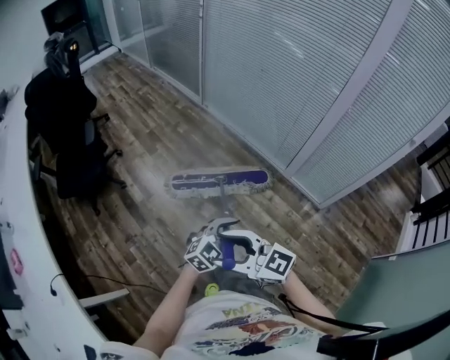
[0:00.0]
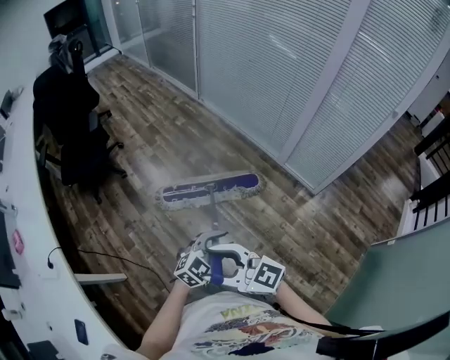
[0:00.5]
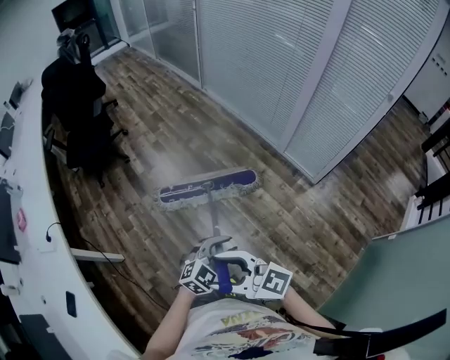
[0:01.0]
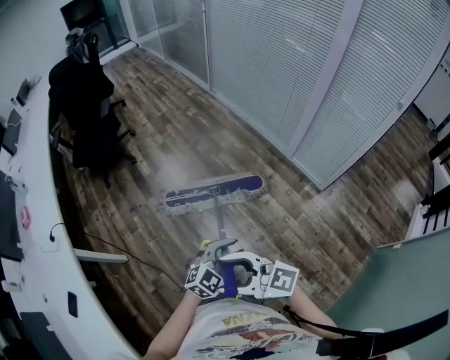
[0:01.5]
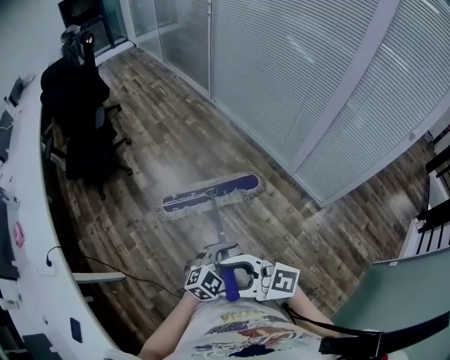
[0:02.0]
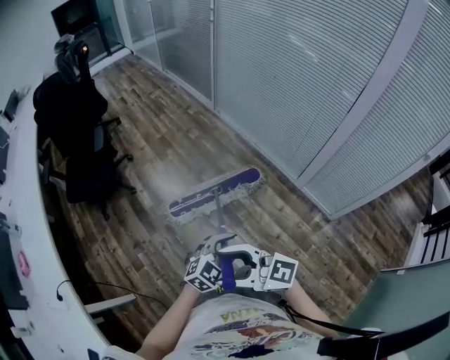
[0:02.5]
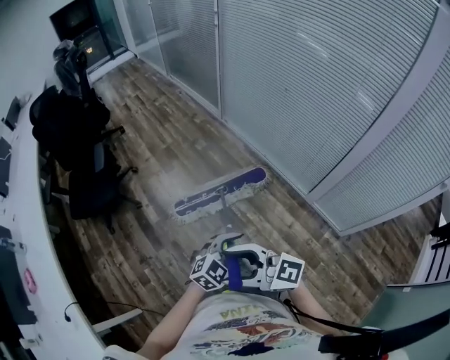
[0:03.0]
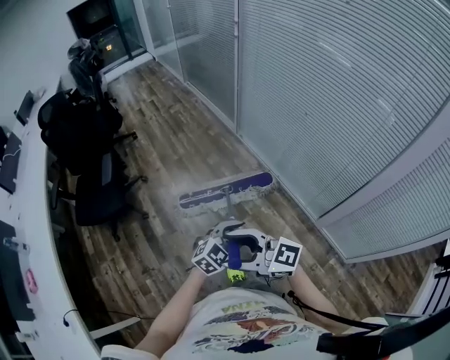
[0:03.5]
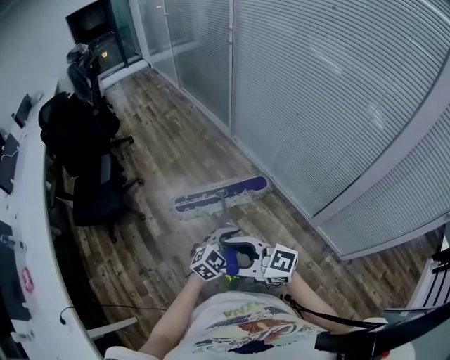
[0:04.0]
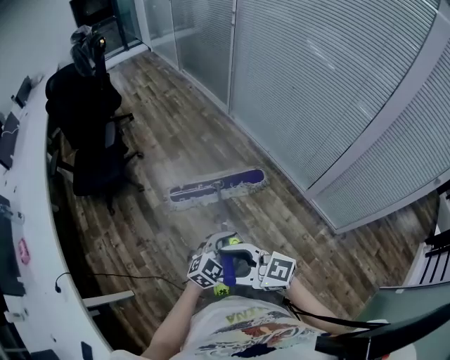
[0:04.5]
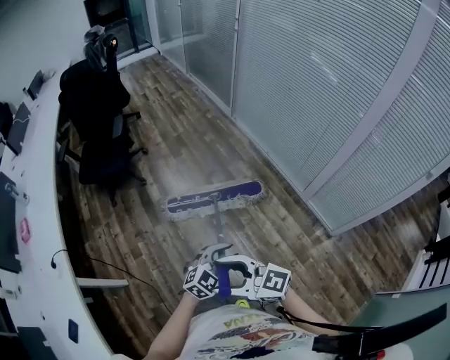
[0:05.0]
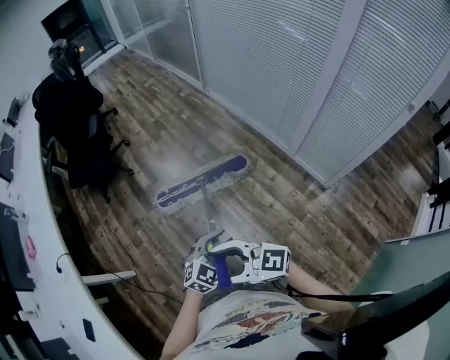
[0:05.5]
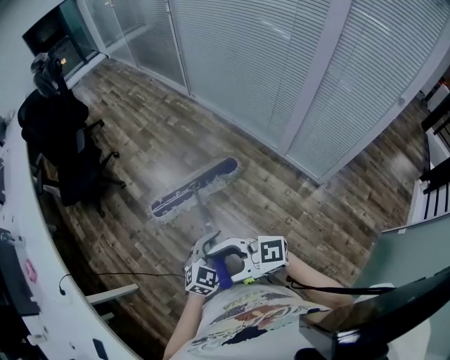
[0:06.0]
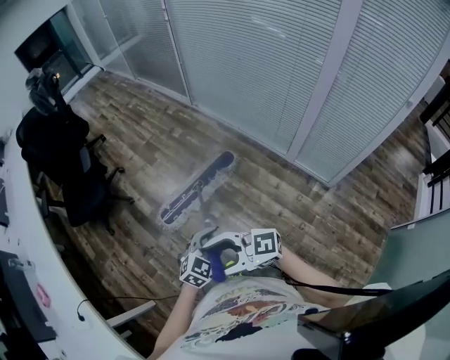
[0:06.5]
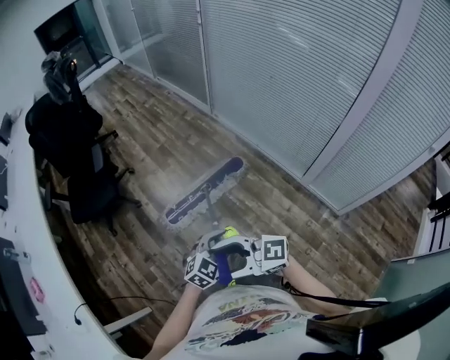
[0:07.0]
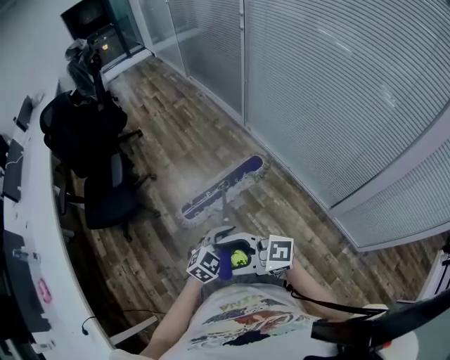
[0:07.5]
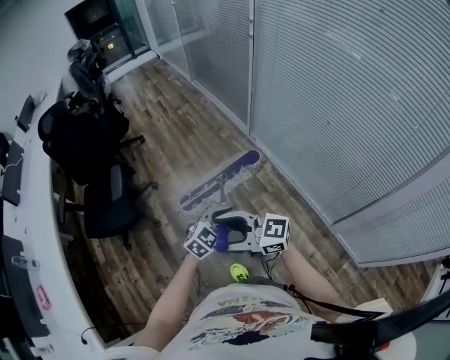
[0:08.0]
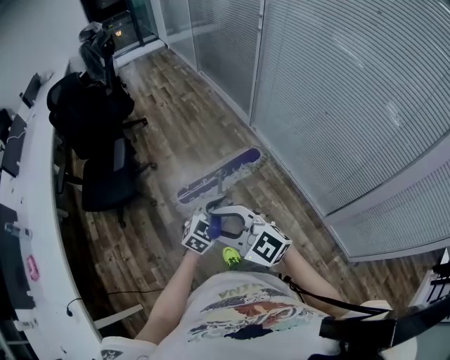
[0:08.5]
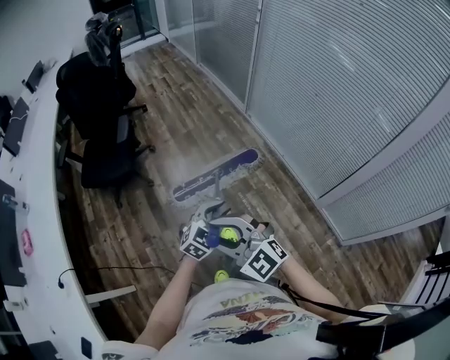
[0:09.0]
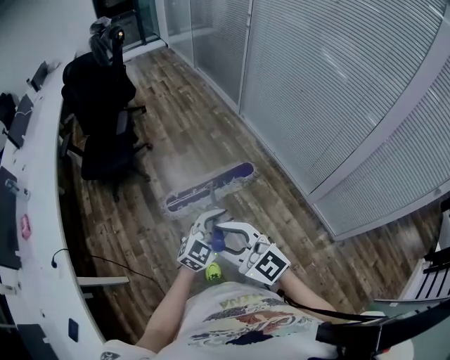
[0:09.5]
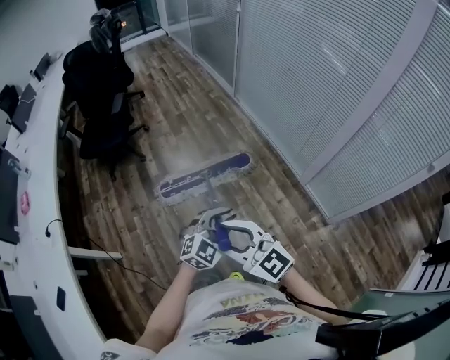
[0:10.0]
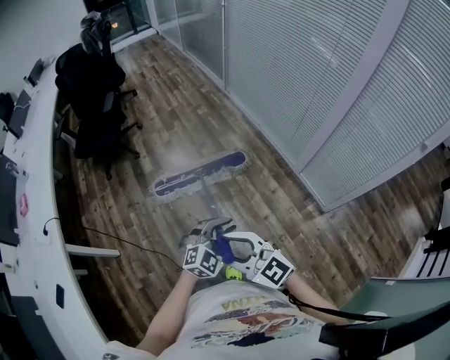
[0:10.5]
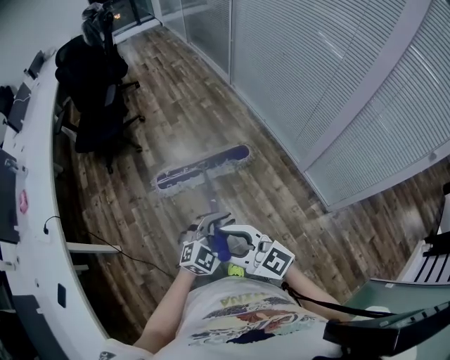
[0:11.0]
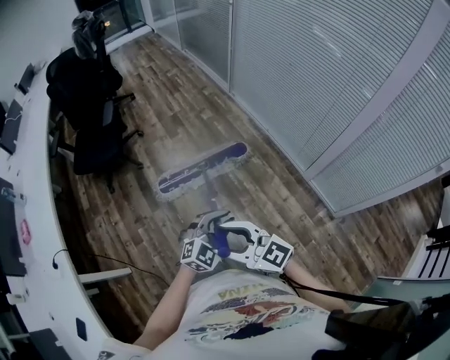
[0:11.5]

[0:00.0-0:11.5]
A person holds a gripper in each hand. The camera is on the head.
0:02.0 to 0:04.0: Both grippers are carried some 50 cm.
0:04.0 to 0:06.0: The two grippers travel together, roughly 40 cm.
0:06.0 to 0:07.5: The two grippers travel together, some 50 cm.
0:07.5 to 0:09.5: The left gripper shifts by approximately 30 cm; the right gripper moves about 30 cm, changes its angle by roughly 40 degrees, and closes up.
0:09.5 to 0:11.5: The two grippers go roughly 5 cm downward. The right gripper travels backward and back again, approximately 25 cm each way. The left gripper travels backward and back again, about 25 cm each way.

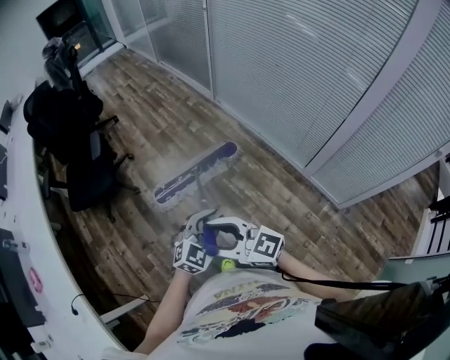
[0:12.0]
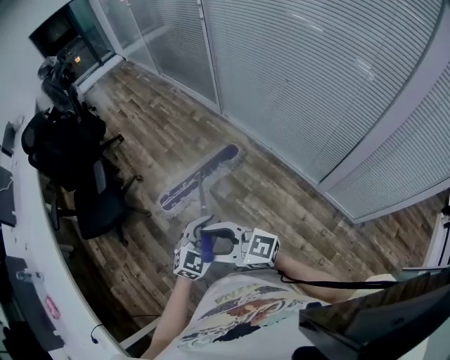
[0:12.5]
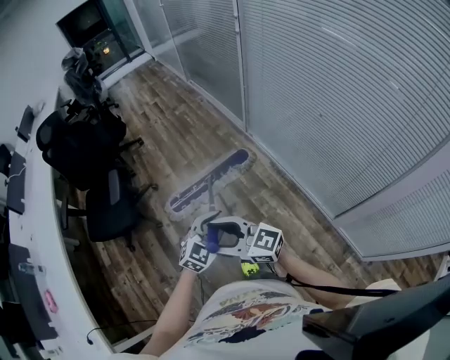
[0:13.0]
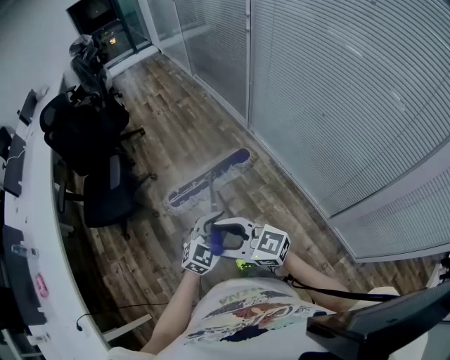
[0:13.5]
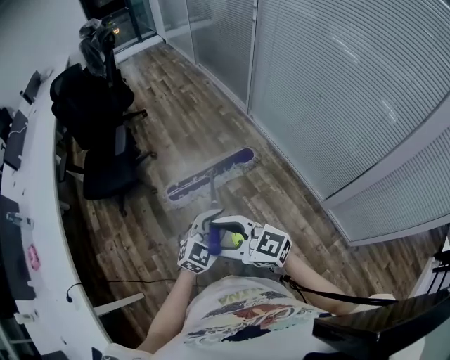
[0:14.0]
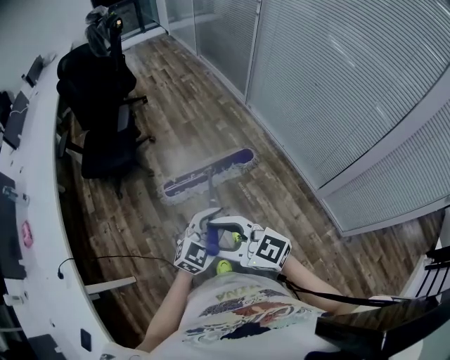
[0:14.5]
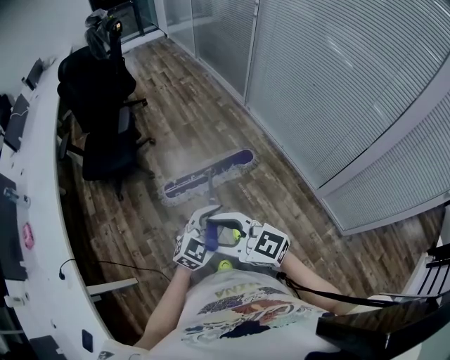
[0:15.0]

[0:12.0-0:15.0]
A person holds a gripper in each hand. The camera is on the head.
0:12.0 to 0:13.5: Both grippers travel together forward, some 30 cm.
0:13.5 to 0:15.0: Both grippers travel together backward and to the left, about 35 cm.

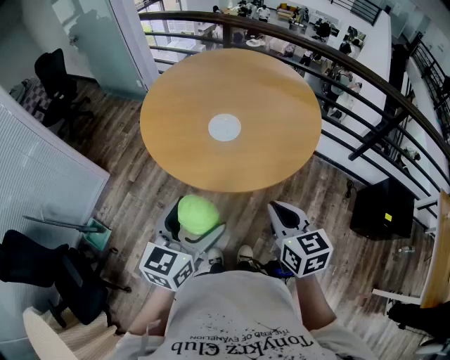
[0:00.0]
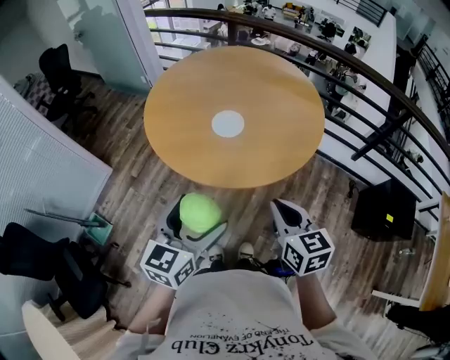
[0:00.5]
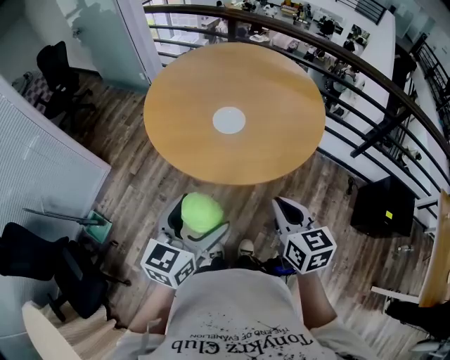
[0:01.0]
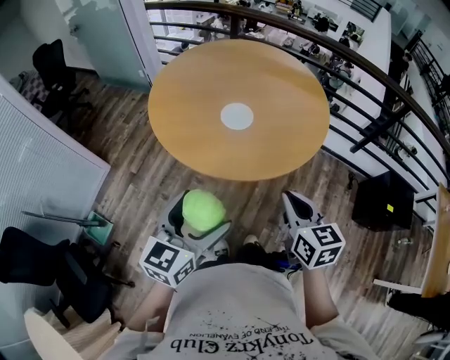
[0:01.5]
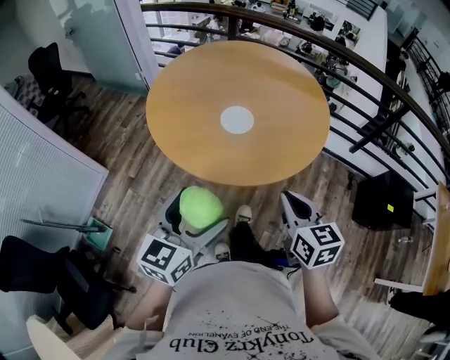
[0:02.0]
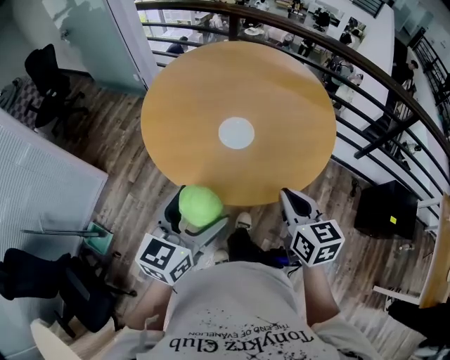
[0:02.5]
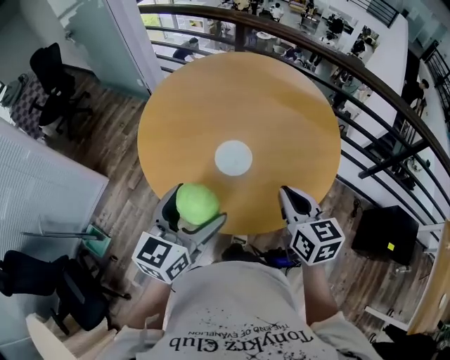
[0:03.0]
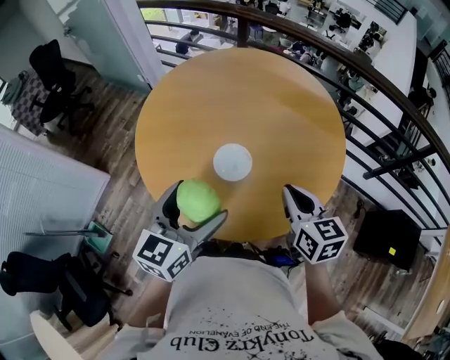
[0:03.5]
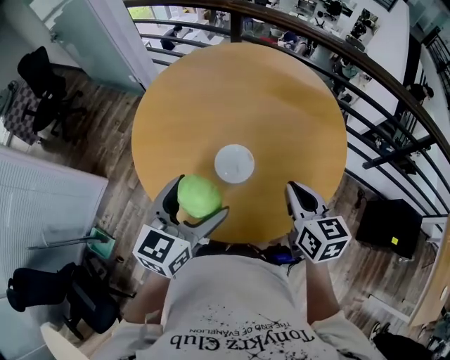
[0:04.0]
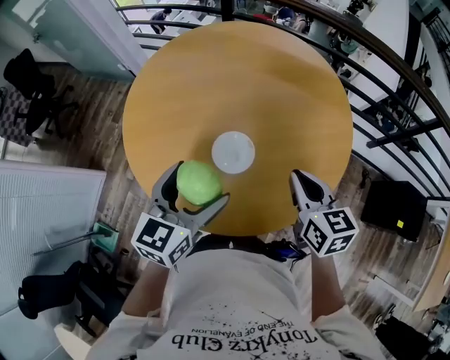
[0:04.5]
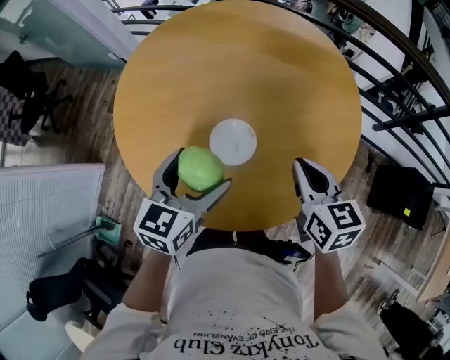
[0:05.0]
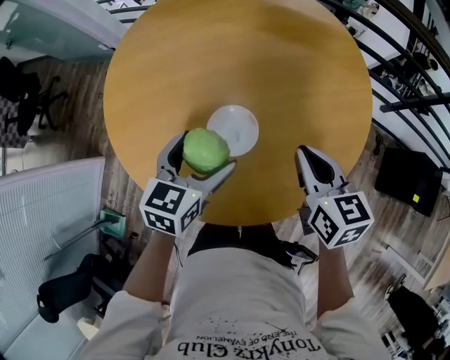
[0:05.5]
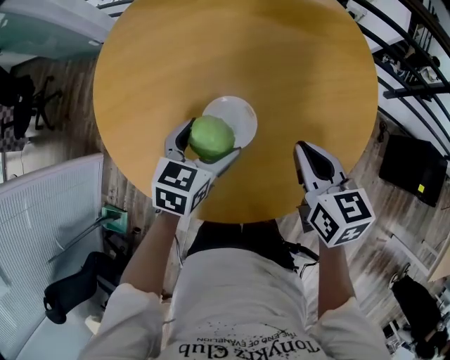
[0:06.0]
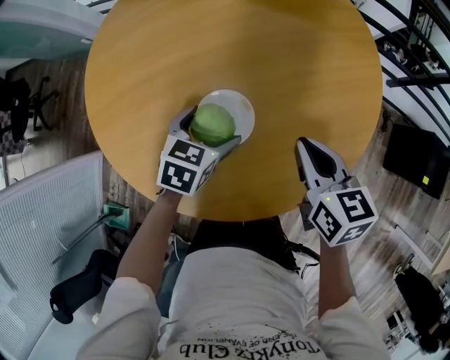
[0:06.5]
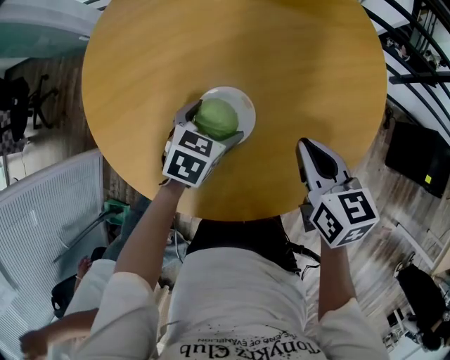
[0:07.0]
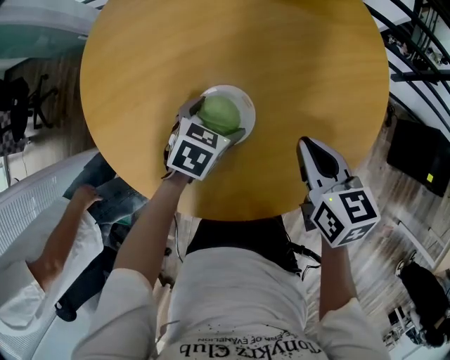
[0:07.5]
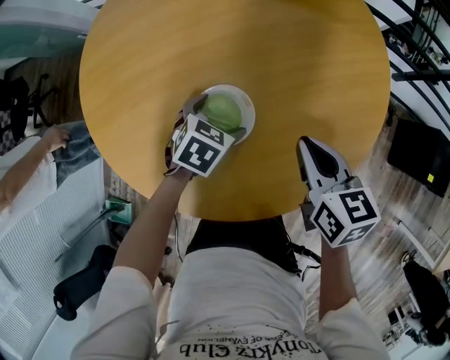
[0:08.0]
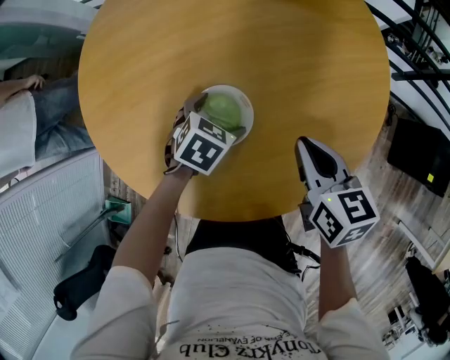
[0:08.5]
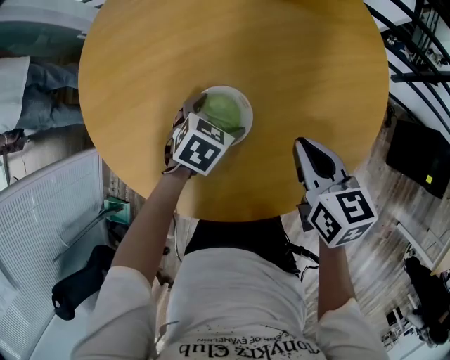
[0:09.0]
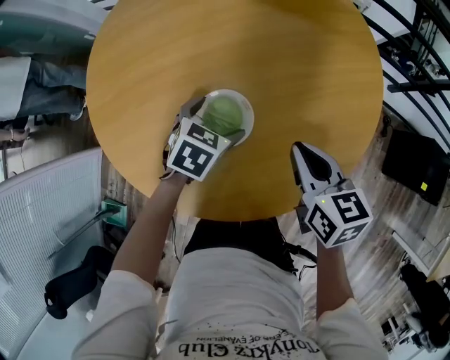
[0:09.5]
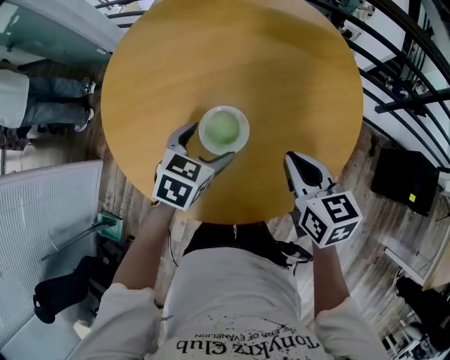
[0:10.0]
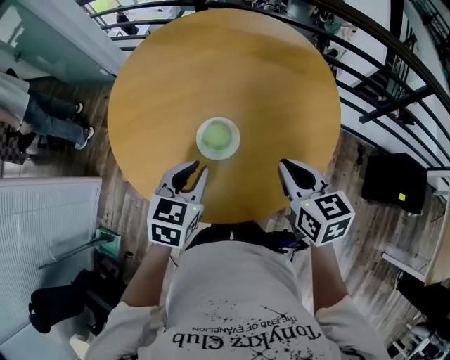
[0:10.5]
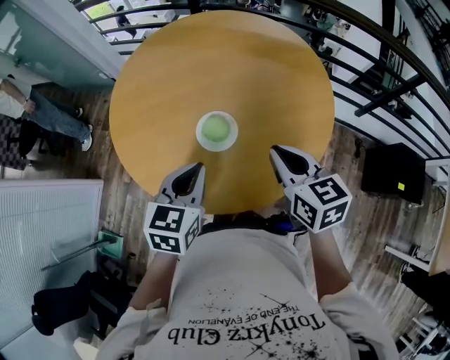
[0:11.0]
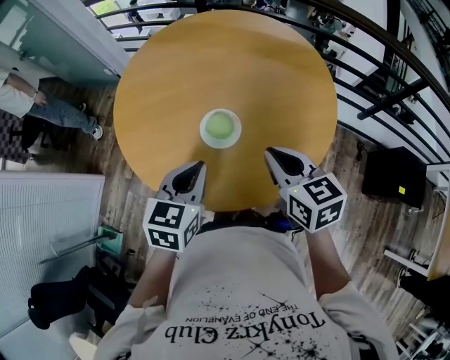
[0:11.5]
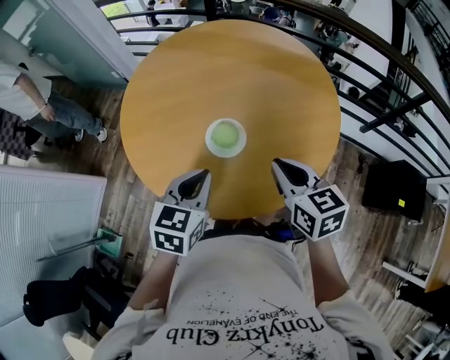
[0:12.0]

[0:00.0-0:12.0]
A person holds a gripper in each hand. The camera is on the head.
0:00.0 to 0:02.0: The left gripper goes some 10 cm to the left, while the right gripper shifts by some 5 cm.
0:02.0 to 0:04.0: The two grippers go roughly 30 cm forward.
0:04.0 to 0:06.0: The left gripper heads downward and forward, covering approximately 25 cm, and turns by some 30 degrees. The right gripper goes approximately 15 cm downward and forward.
0:06.0 to 0:08.0: The right gripper moves approximately 5 cm; the left gripper moves downward, some 10 cm, and changes its angle by approximately 20 degrees.
0:08.0 to 0:10.0: The left gripper heads upward and backward, covering approximately 15 cm. The right gripper moves upward and backward, approximately 10 cm.
0:10.0 to 0:12.0: The left gripper is displaced backward and upward by roughly 20 cm, and closes up. Meanwhile the right gripper heads upward and backward, covering some 10 cm.
